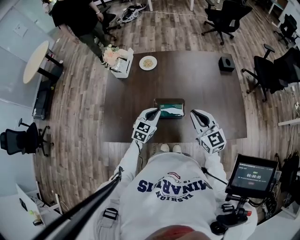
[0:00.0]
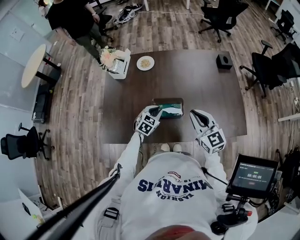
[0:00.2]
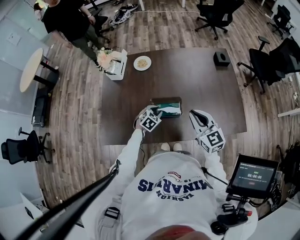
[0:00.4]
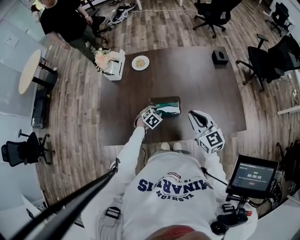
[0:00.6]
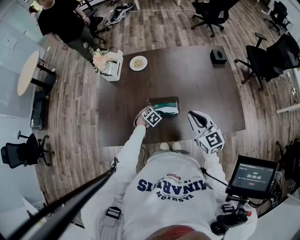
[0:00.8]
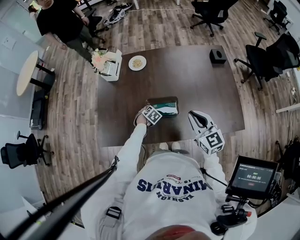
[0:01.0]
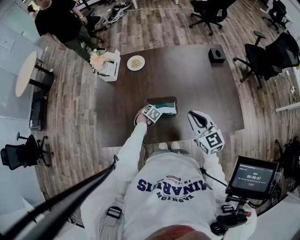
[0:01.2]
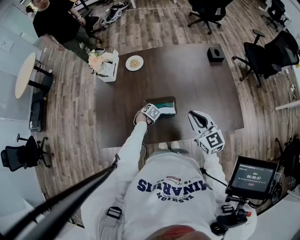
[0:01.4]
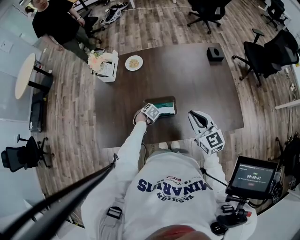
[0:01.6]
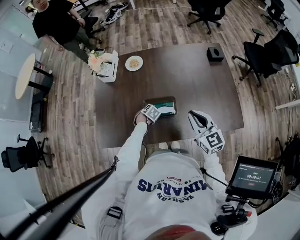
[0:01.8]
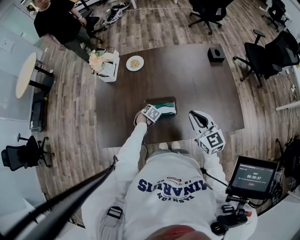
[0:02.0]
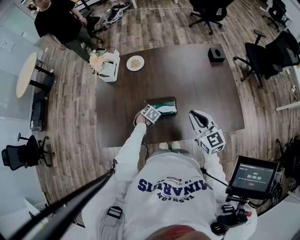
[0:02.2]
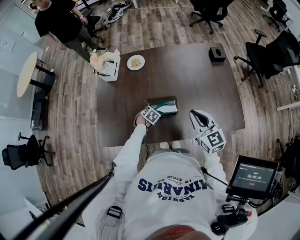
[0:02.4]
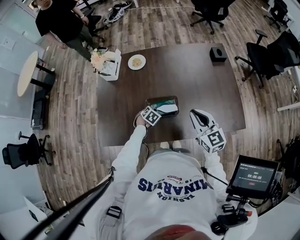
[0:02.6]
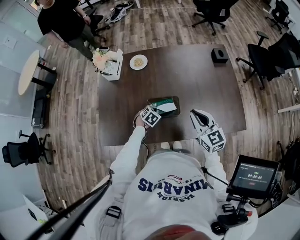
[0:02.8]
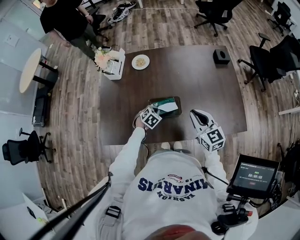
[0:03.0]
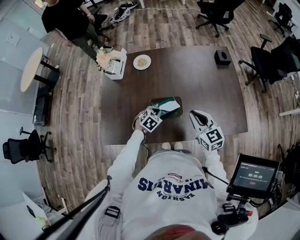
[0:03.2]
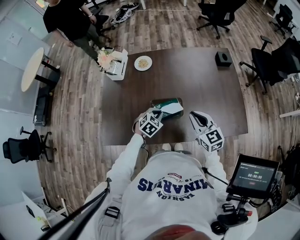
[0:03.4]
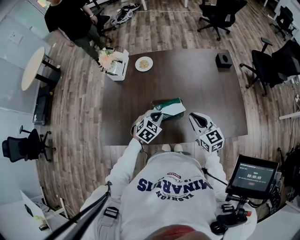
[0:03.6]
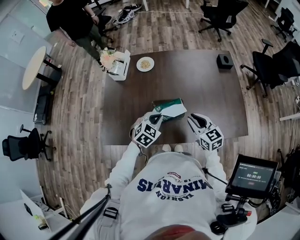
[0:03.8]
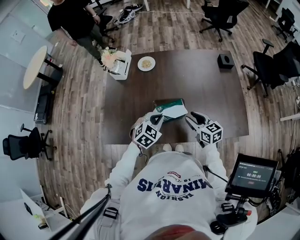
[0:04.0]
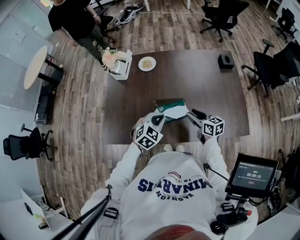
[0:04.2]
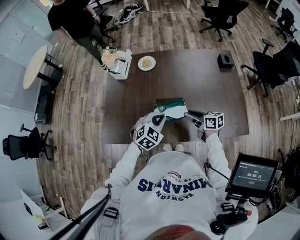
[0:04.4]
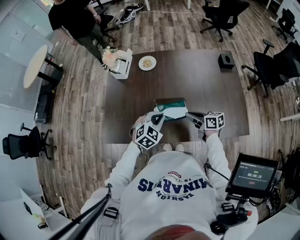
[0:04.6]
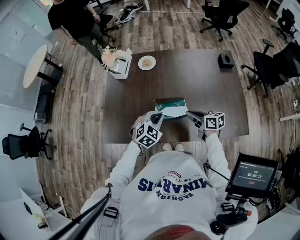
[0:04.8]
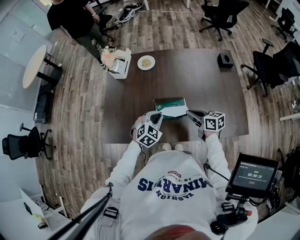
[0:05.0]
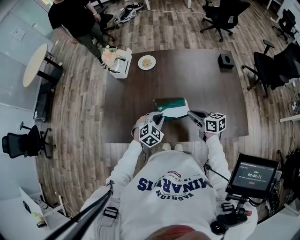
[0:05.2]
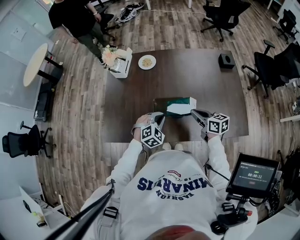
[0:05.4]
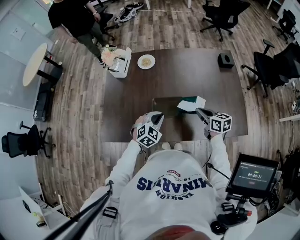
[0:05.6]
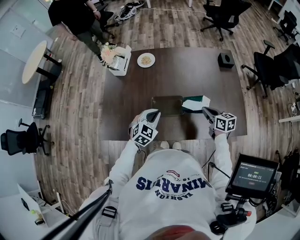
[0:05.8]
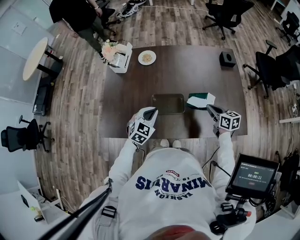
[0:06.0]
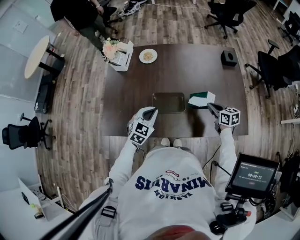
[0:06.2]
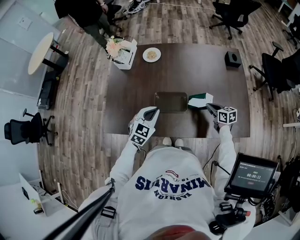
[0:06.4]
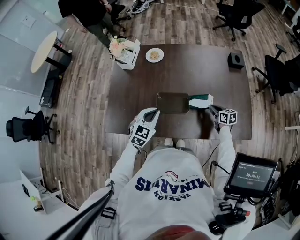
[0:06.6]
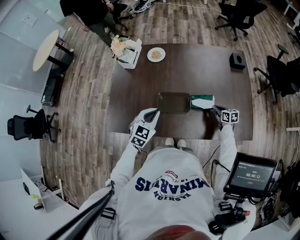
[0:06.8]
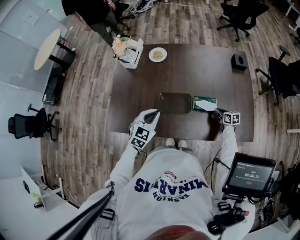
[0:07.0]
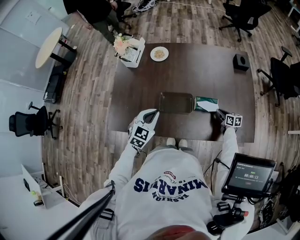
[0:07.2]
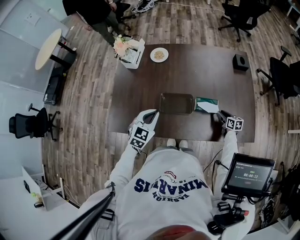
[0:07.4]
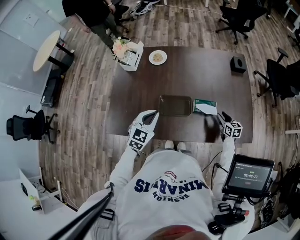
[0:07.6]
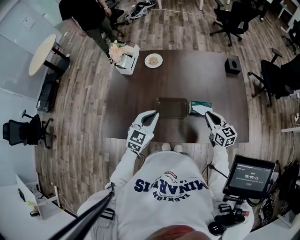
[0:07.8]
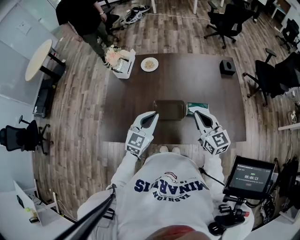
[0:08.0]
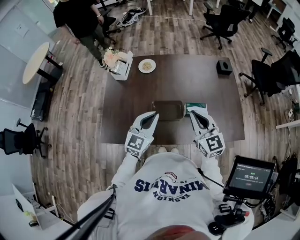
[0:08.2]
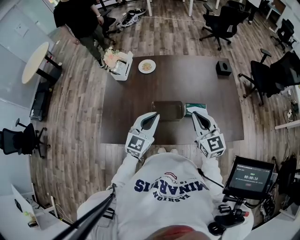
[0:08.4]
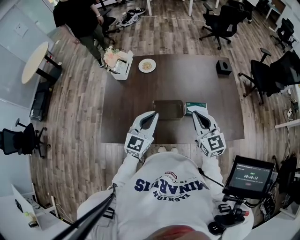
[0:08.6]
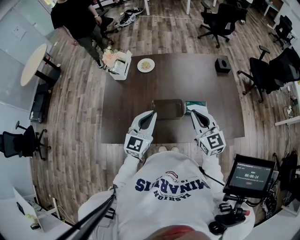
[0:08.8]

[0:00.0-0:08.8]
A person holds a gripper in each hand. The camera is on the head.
0:00.0 to 0:01.4: The left gripper moves downward, roughly 20 cm, tips its fingers downward by approximately 50 degrees, and opens its fingers.
0:01.4 to 0:03.0: The left gripper moves upward, some 10 cm, and closes its fingers.
0:03.0 to 0:04.4: The right gripper travels downward by about 10 cm, swivels some 50 degrees, and opens its fingers. The left gripper shifts some 20 cm upward, and swivels approximately 20 degrees.
0:04.4 to 0:05.8: The right gripper travels to the right by roughly 10 cm, and closes.
0:05.8 to 0:07.4: The right gripper is displaced downward and to the right by approximately 20 cm, and opens its fingers.
0:07.4 to 0:08.8: The left gripper heads upward, covering roughly 10 cm, and swivels about 30 degrees. The right gripper heads upward and to the left, covering about 40 cm, changes its angle by approximately 50 degrees, and closes its fingers.

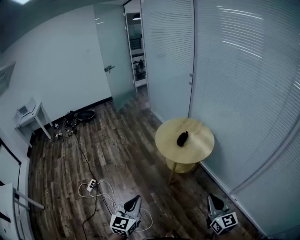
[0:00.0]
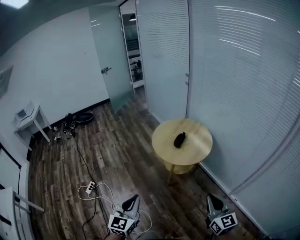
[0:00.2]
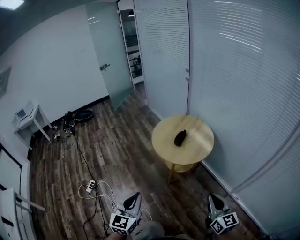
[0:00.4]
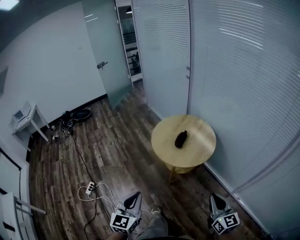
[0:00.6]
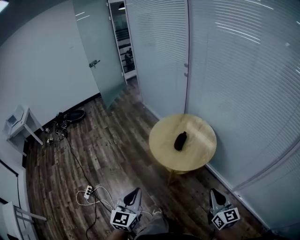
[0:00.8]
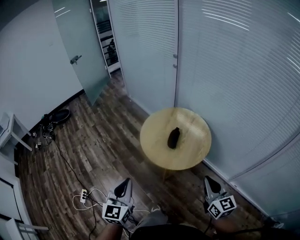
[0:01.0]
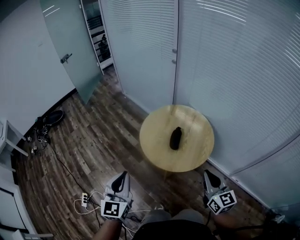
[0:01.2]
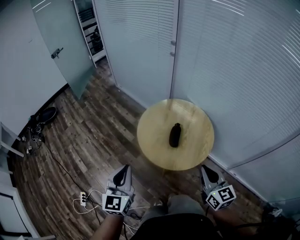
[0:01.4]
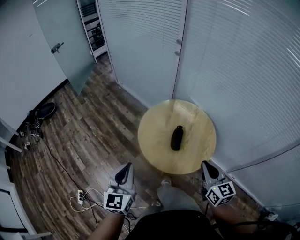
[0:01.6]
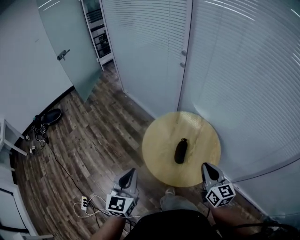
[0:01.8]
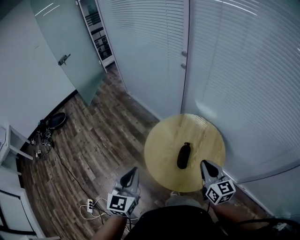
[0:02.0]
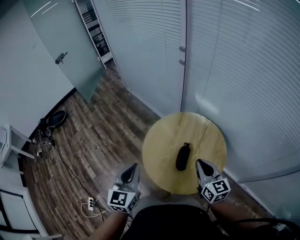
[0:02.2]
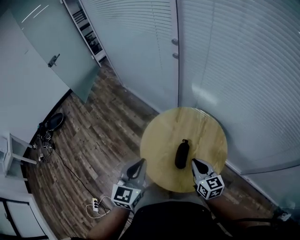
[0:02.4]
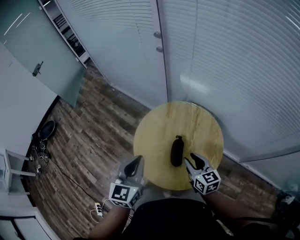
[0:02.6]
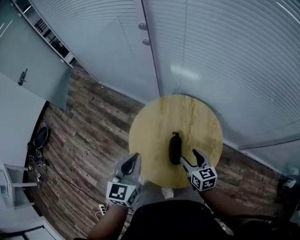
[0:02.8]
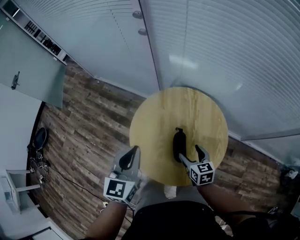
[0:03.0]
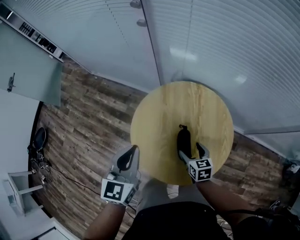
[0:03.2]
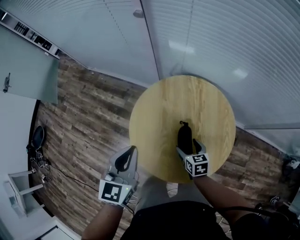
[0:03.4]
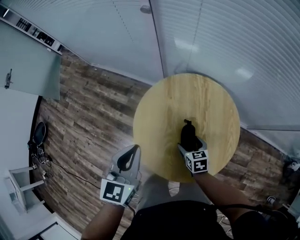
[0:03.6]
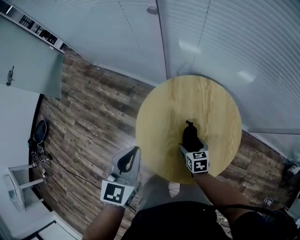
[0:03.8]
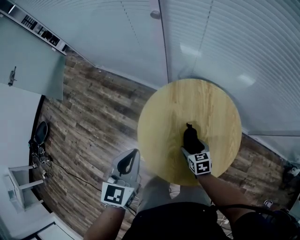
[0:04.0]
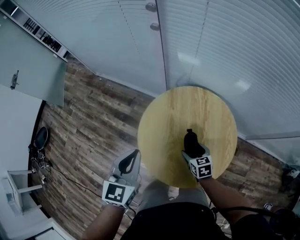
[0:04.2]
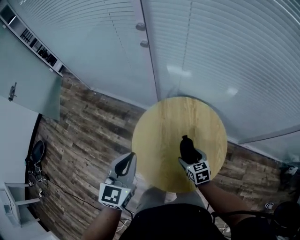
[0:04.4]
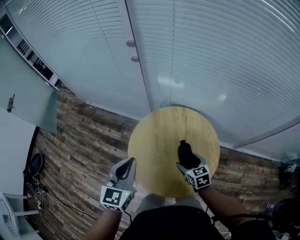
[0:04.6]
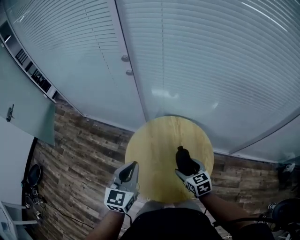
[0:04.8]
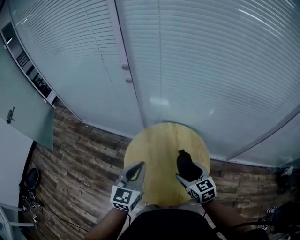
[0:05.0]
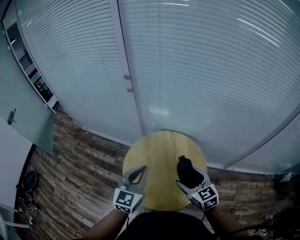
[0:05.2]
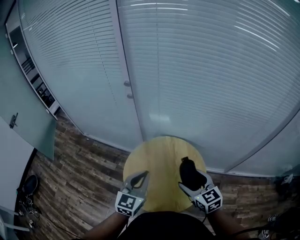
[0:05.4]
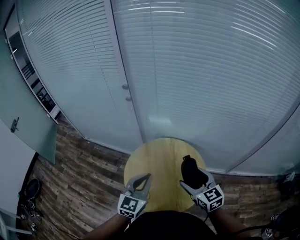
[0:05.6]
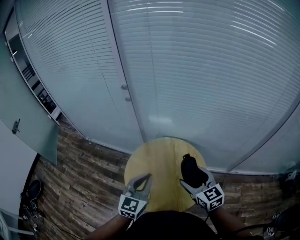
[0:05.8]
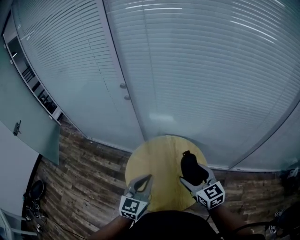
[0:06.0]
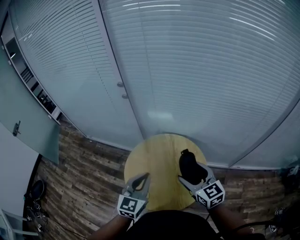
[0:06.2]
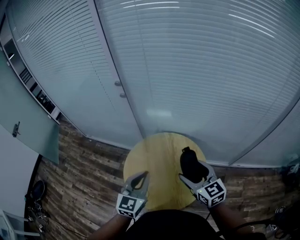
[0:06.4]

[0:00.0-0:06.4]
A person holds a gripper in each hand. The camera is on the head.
0:00.0 to 0:01.6: The pair of grippers is taken forward, roughly 50 cm.
0:01.6 to 0:03.2: The left gripper heads forward, covering approximately 35 cm, and rotates approximately 30 degrees. The right gripper moves downward and forward, about 40 cm, tilts its fingers about 30 degrees downward, and opens up.
0:03.2 to 0:04.8: The left gripper shifts some 5 cm upward; the right gripper moves upward, roughly 15 cm.
0:04.8 to 0:06.4: The right gripper is displaced upward and to the right by about 20 cm, and rotates some 20 degrees, while the left gripper moves to the right, roughly 10 cm.

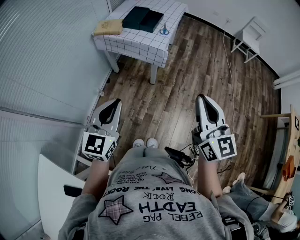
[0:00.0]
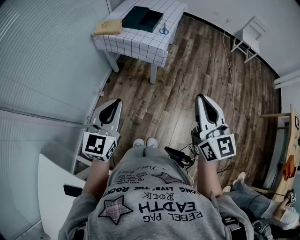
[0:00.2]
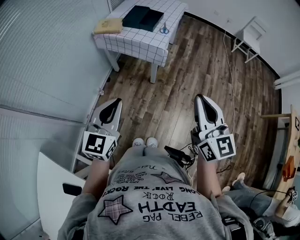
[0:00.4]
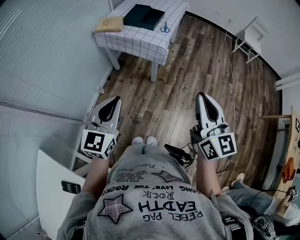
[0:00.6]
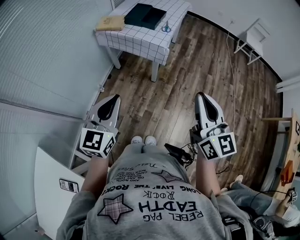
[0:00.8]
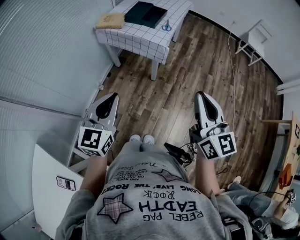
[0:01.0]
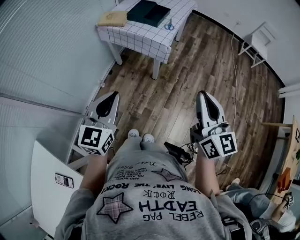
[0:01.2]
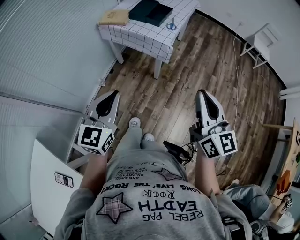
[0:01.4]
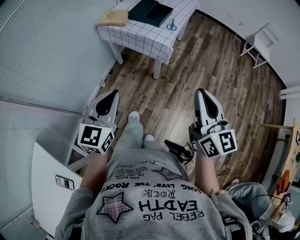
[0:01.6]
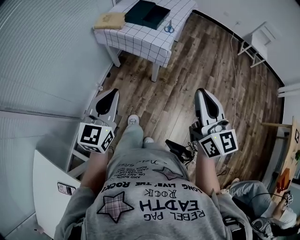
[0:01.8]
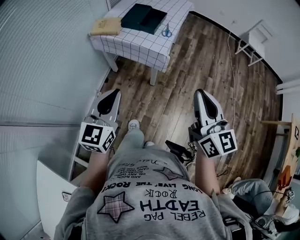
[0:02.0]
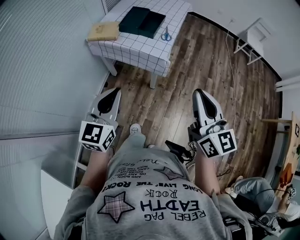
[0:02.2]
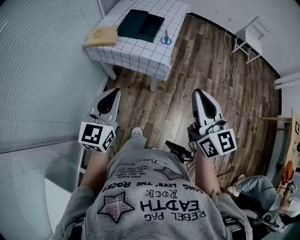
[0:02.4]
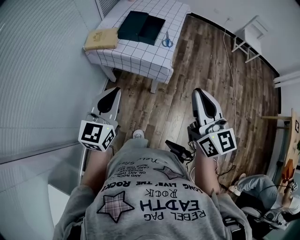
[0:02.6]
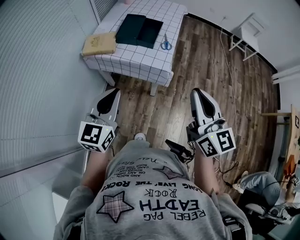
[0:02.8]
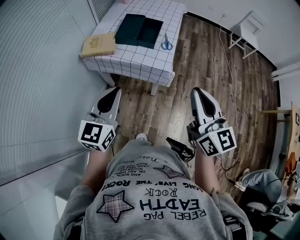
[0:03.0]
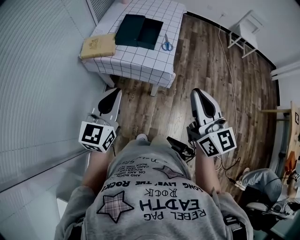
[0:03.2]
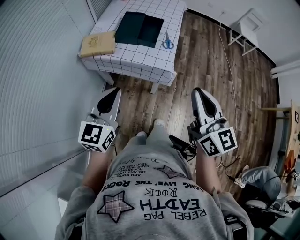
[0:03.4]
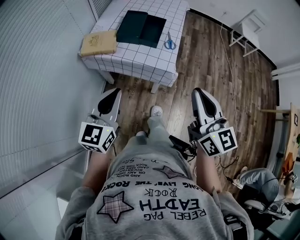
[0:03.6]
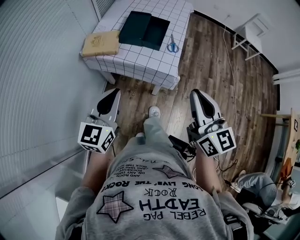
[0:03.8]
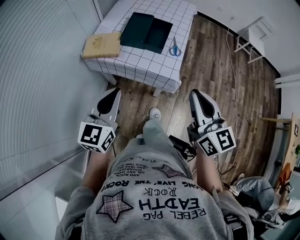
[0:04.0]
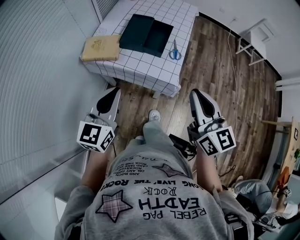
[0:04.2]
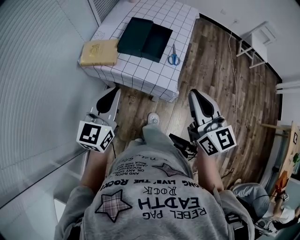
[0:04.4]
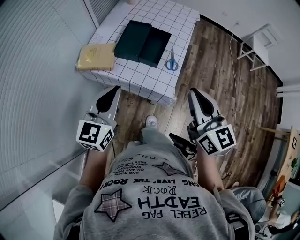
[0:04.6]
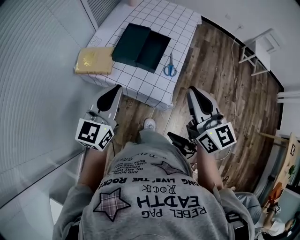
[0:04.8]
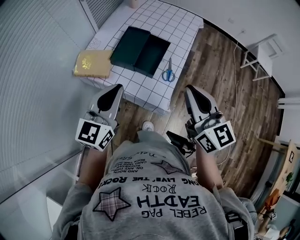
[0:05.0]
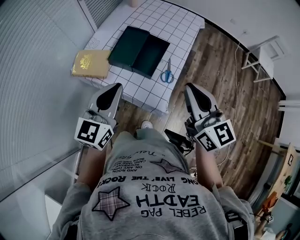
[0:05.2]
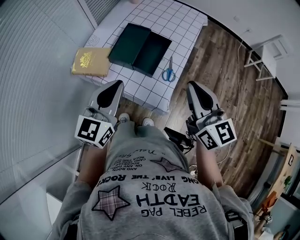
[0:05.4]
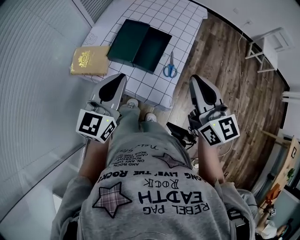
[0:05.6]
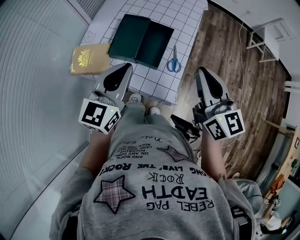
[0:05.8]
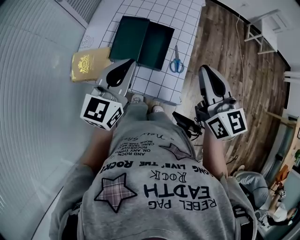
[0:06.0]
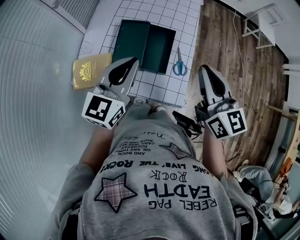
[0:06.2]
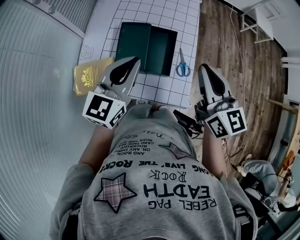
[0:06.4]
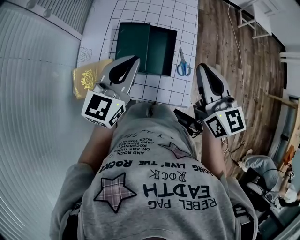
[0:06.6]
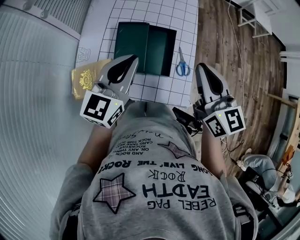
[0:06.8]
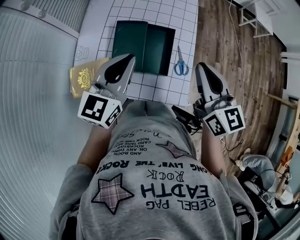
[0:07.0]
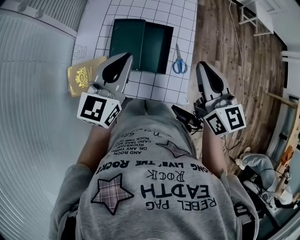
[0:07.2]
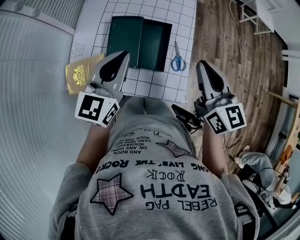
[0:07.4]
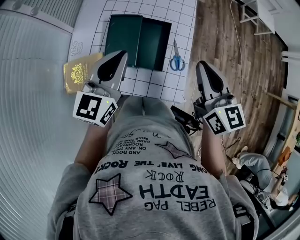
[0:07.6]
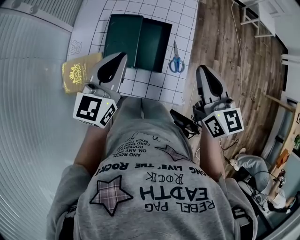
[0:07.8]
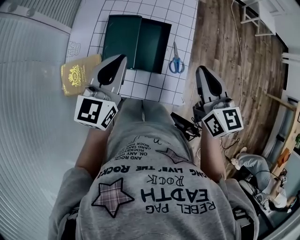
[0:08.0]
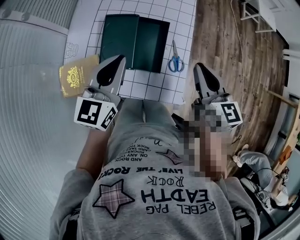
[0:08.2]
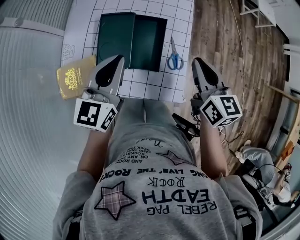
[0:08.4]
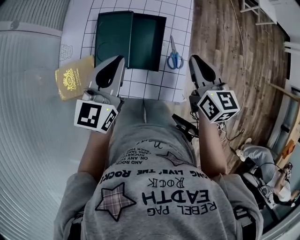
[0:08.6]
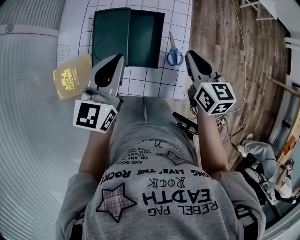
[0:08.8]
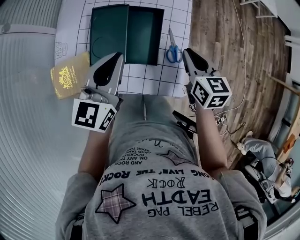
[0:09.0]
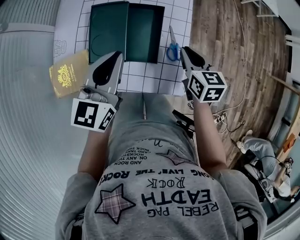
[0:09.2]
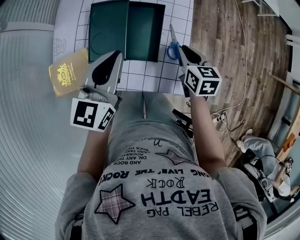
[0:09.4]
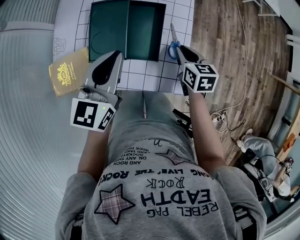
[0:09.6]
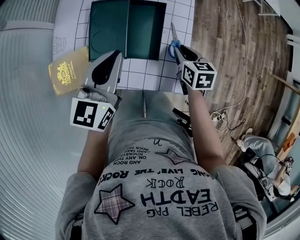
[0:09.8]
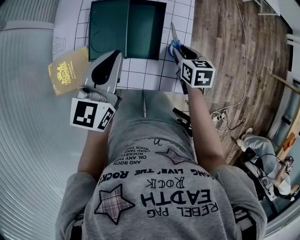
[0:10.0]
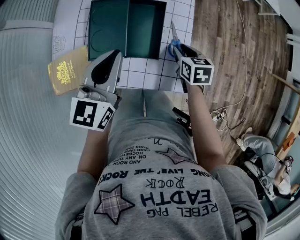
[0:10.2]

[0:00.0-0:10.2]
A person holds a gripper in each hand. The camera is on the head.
0:00.0 to 0:01.4: The grippers make only small movements.
0:01.4 to 0:03.0: The right gripper travels forward and to the left by some 25 cm, while the left gripper moves forward, some 25 cm.
0:03.0 to 0:04.4: The two grippers go approximately 15 cm forward.
0:04.4 to 0:05.8: The left gripper goes some 20 cm forward and to the right, while the right gripper goes approximately 20 cm forward.
0:05.8 to 0:07.2: The left gripper moves forward, some 10 cm; the right gripper is displaced forward by approximately 5 cm.
0:07.2 to 0:08.8: The right gripper is displaced downward by approximately 15 cm. Meanwhile the left gripper travels downward by approximately 5 cm.
0:08.8 to 0:10.2: The right gripper heads downward, covering approximately 15 cm, rotates some 20 degrees, and opens.
